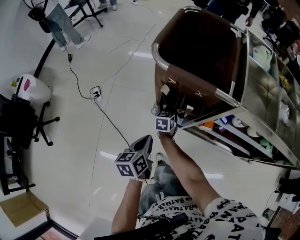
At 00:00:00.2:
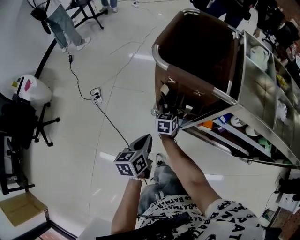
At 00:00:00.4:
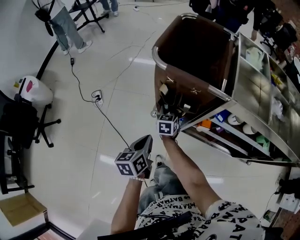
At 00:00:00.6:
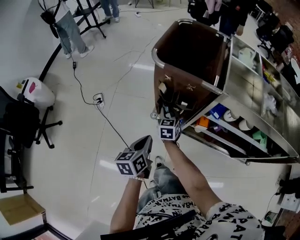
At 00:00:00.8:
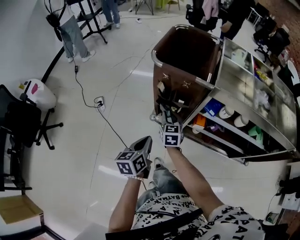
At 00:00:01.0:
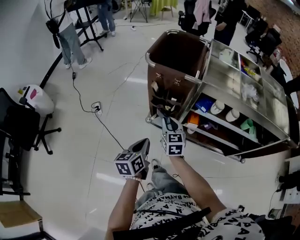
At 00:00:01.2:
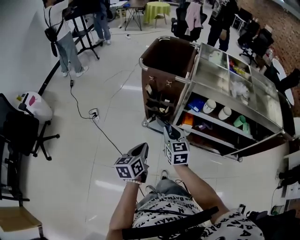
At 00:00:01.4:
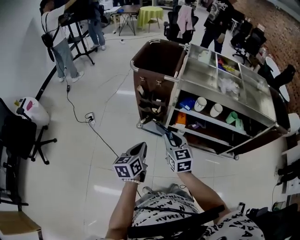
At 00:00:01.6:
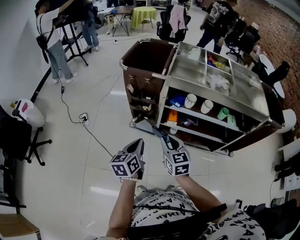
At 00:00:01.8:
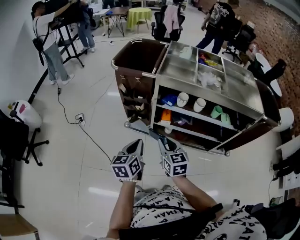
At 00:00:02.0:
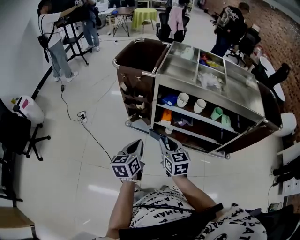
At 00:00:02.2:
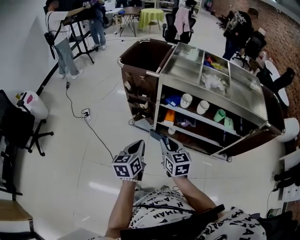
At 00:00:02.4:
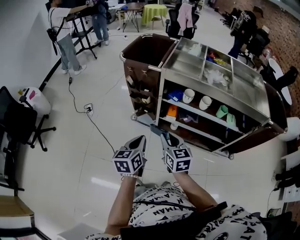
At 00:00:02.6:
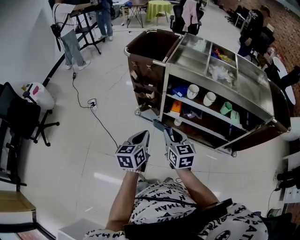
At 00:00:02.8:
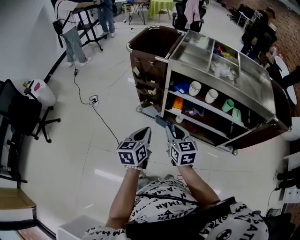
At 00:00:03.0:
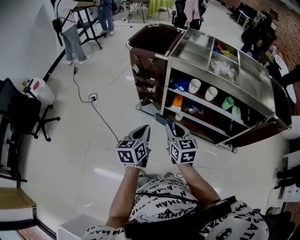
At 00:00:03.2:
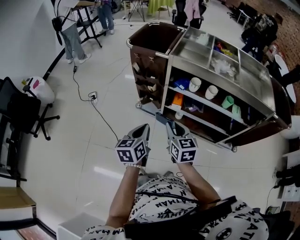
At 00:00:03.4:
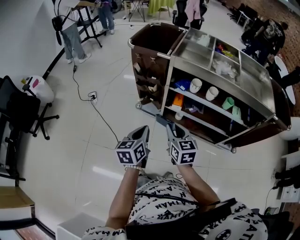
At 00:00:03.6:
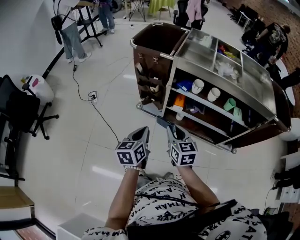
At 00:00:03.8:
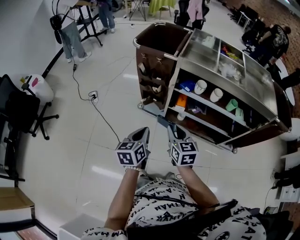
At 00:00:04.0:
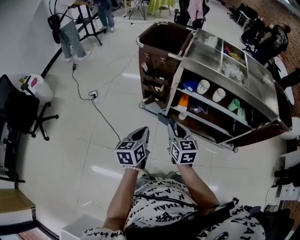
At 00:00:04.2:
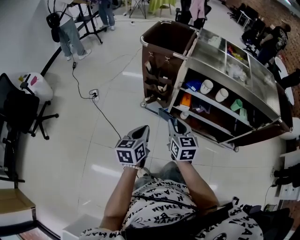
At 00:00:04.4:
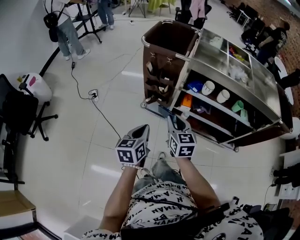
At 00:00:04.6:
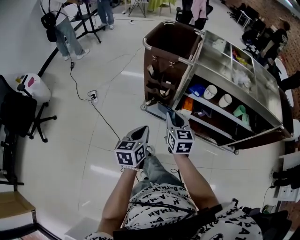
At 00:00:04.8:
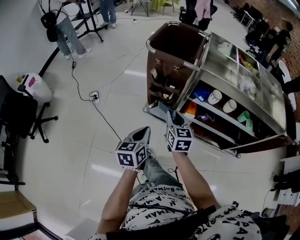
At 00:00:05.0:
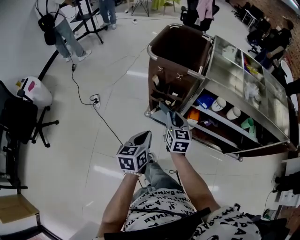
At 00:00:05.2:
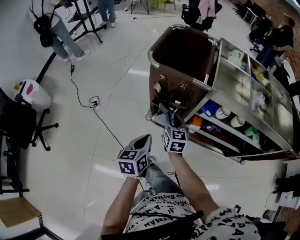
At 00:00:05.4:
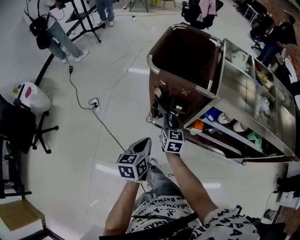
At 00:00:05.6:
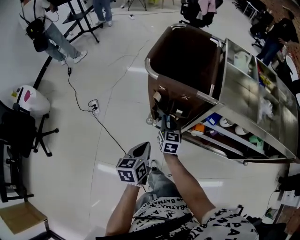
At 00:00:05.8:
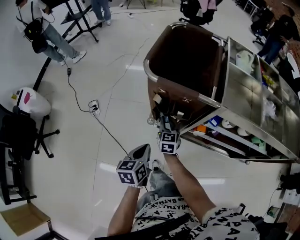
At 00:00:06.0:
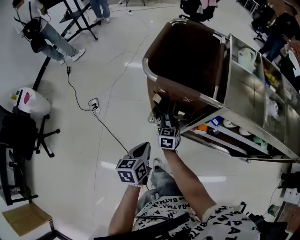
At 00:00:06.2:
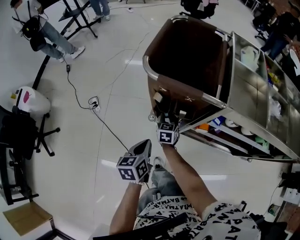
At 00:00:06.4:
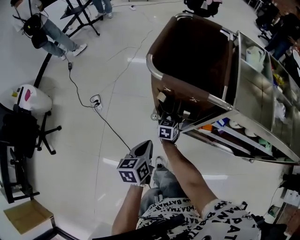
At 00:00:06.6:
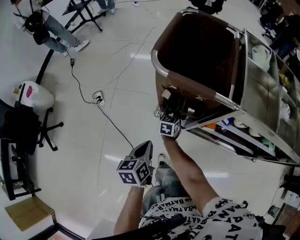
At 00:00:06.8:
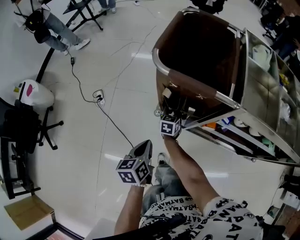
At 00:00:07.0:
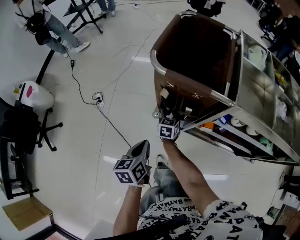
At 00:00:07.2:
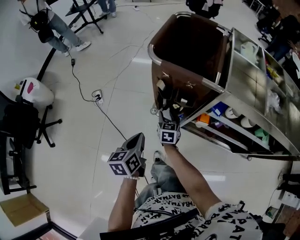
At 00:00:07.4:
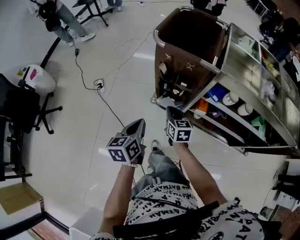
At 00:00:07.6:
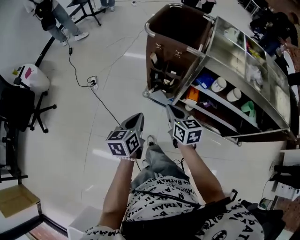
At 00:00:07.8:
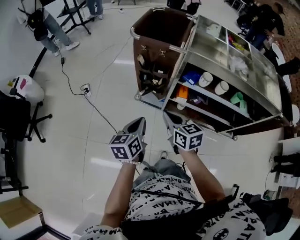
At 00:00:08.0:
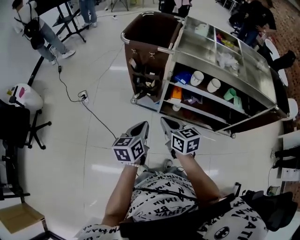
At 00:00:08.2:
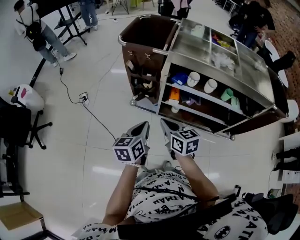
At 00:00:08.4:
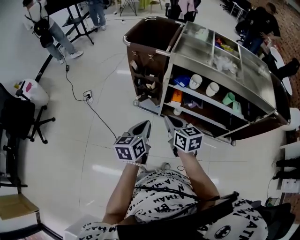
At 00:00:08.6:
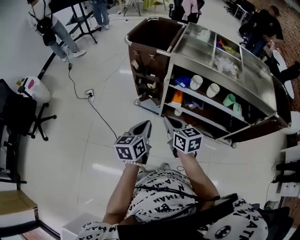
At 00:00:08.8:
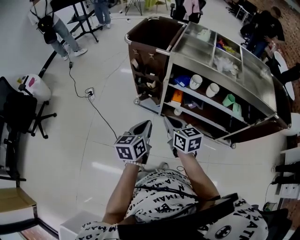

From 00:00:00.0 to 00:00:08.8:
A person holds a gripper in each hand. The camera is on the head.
From 00:00:00.0 to 00:00:01.4: The left gripper is displaced backward, upward and to the right by about 20 cm. Meanwhile the right gripper travels backward, upward and to the right by some 40 cm, and changes its angle by approximately 30 degrees.
From 00:00:01.4 to 00:00:03.0: Both grippers travel together to the right and backward, about 10 cm.
From 00:00:03.0 to 00:00:04.4: The left gripper travels to the left by some 10 cm, while the right gripper travels to the left and forward by about 10 cm.
From 00:00:04.4 to 00:00:05.8: The right gripper moves forward and downward, approximately 30 cm, while the left gripper is displaced forward by some 20 cm.
From 00:00:05.8 to 00:00:07.4: The left gripper travels backward by some 5 cm; the right gripper heads backward, covering some 10 cm, and opens, then closes again.
From 00:00:07.4 to 00:00:08.8: The right gripper travels backward, upward and to the right by some 30 cm, while the left gripper moves to the right and backward, roughly 25 cm.

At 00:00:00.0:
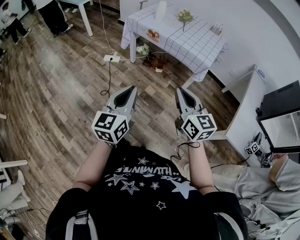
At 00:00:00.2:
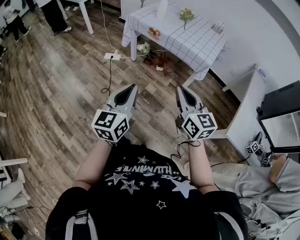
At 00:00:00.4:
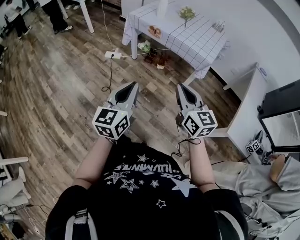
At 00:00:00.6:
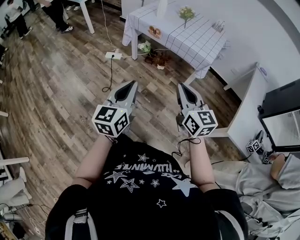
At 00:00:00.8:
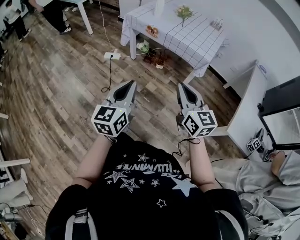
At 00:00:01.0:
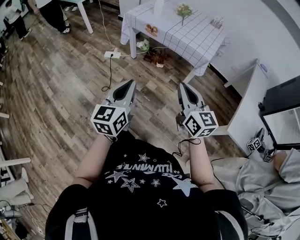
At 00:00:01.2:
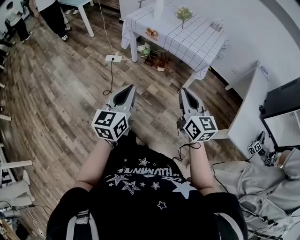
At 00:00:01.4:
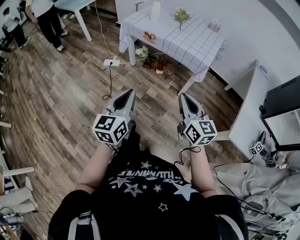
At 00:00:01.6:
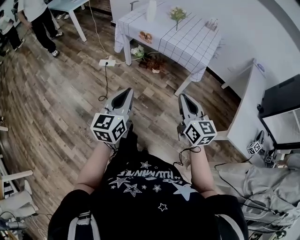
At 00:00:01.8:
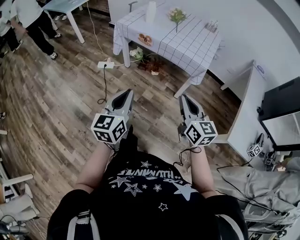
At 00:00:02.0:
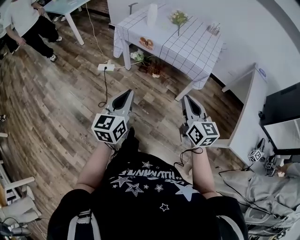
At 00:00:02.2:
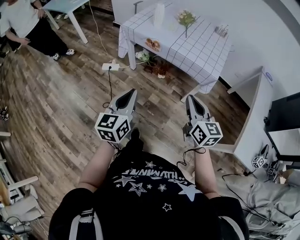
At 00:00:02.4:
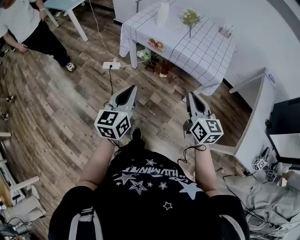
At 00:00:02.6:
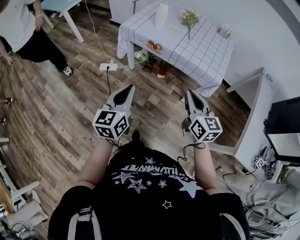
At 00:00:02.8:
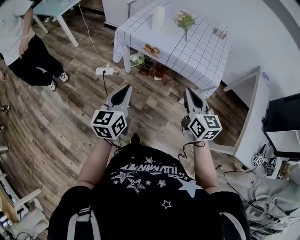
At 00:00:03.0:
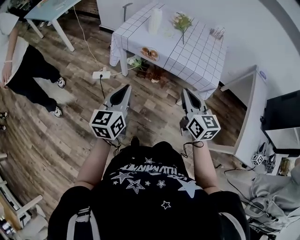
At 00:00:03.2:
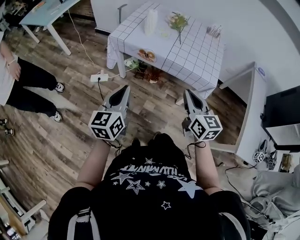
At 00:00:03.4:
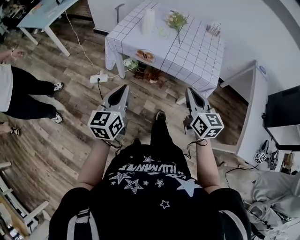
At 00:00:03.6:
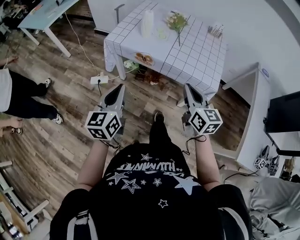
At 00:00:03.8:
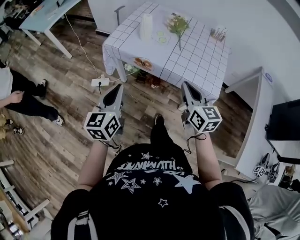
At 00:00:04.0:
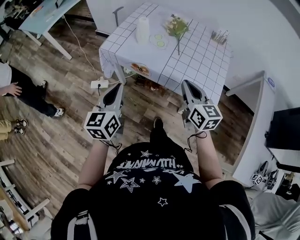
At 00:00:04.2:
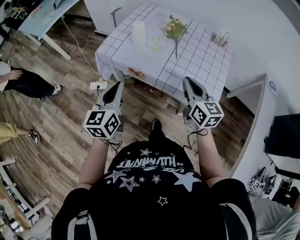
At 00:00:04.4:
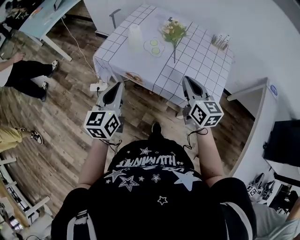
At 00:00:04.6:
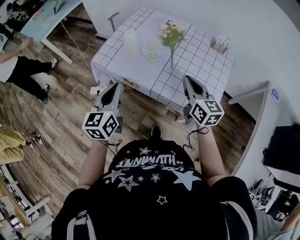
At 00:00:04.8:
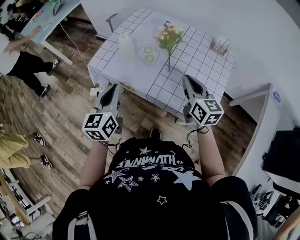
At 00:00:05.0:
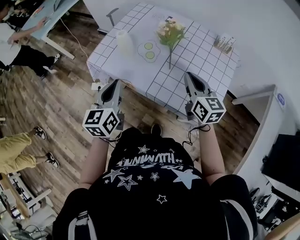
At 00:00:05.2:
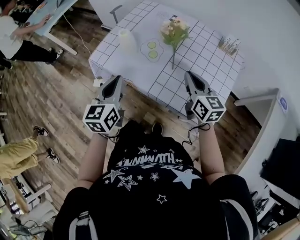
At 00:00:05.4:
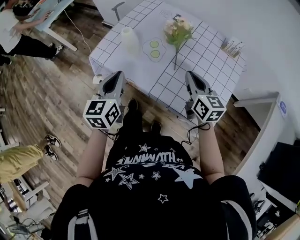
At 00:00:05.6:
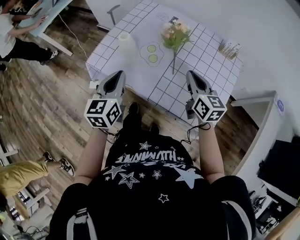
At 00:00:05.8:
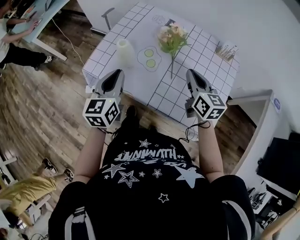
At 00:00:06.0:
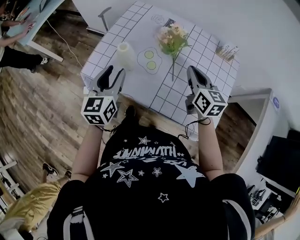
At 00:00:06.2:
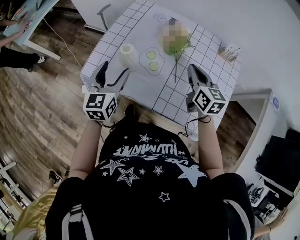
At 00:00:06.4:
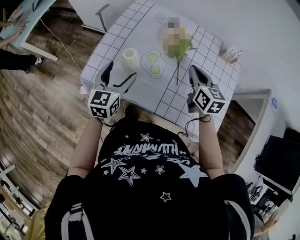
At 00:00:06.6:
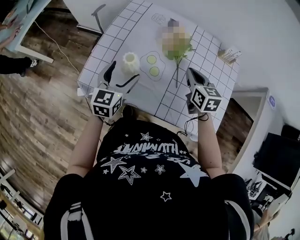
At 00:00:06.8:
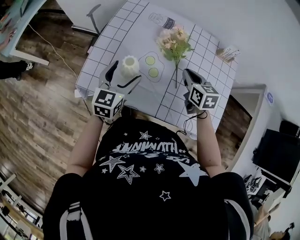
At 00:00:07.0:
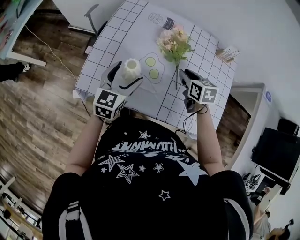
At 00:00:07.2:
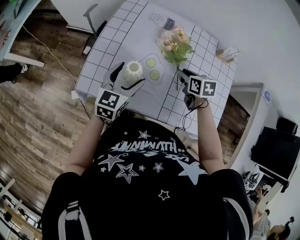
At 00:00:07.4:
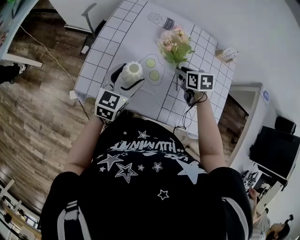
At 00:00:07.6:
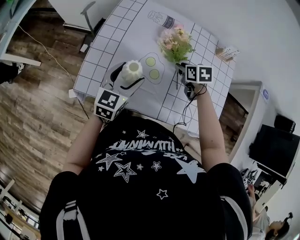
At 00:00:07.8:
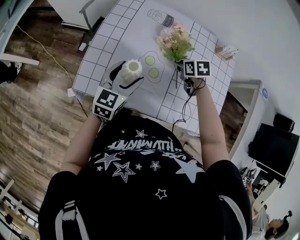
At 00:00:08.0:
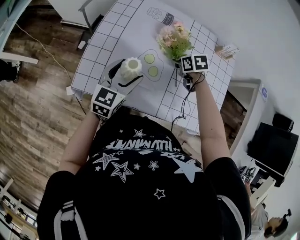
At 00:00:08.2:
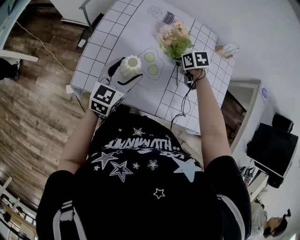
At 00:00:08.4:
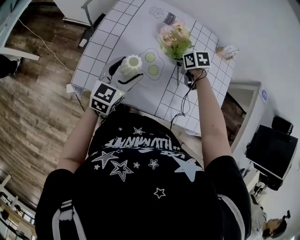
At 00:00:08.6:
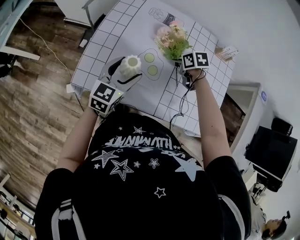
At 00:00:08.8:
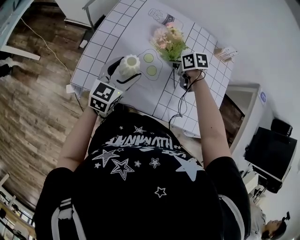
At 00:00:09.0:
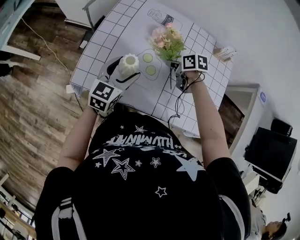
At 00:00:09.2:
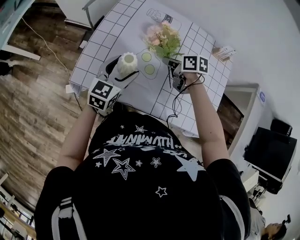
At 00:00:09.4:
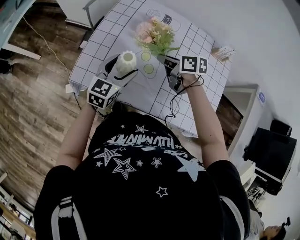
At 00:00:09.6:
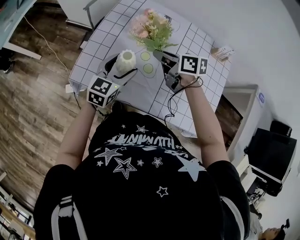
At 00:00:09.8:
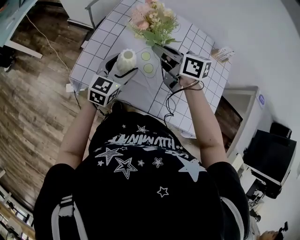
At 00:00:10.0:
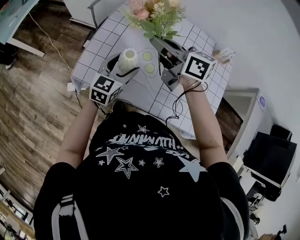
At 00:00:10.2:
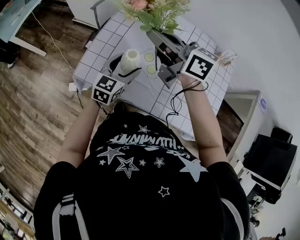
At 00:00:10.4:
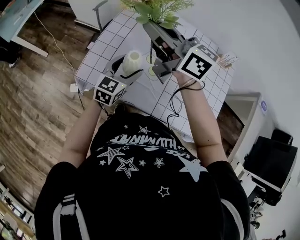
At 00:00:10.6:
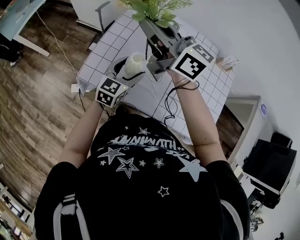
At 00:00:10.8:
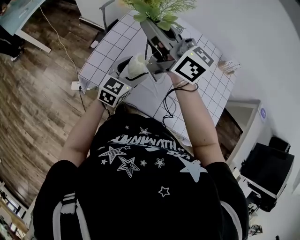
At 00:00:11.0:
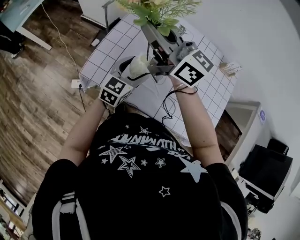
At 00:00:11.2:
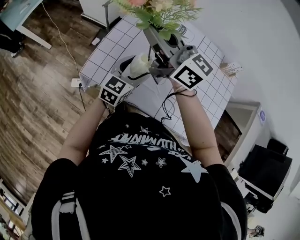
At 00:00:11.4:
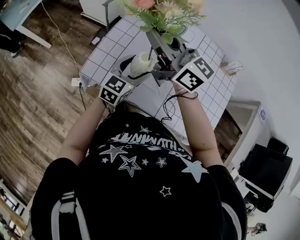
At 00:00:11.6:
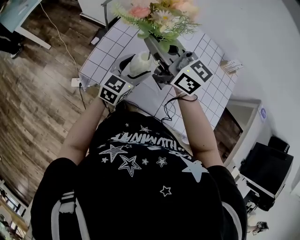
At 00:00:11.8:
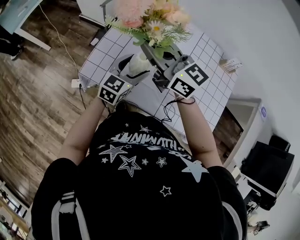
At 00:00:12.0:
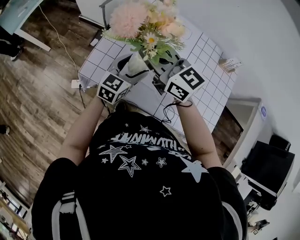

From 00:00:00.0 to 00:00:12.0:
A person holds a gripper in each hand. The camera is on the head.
From 00:00:00.0 to 00:00:01.6: The left gripper heads forward, covering some 5 cm. The right gripper is displaced to the right by about 5 cm.
From 00:00:01.6 to 00:00:03.0: Both grippers move forward and to the left, approximately 25 cm.
From 00:00:03.0 to 00:00:04.4: The right gripper moves forward and to the right, roughly 30 cm. The left gripper travels forward by approximately 25 cm.
From 00:00:04.4 to 00:00:06.0: Both grippers travel together forward, about 20 cm. The left gripper opens up.
From 00:00:06.0 to 00:00:07.6: The left gripper heads forward and downward, covering approximately 10 cm, changes its angle by some 30 degrees, and opens. Meanwhile the right gripper goes roughly 20 cm downward and forward, angles its fingers downward, by approximately 40 degrees, and opens.
From 00:00:07.6 to 00:00:09.0: The right gripper swivels about 20 degrees.
From 00:00:09.0 to 00:00:10.4: The right gripper travels upward and to the left by some 35 cm, and points its fingers about 60 degrees further upward.
From 00:00:10.4 to 00:00:12.0: The right gripper goes about 5 cm downward.

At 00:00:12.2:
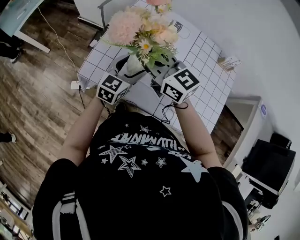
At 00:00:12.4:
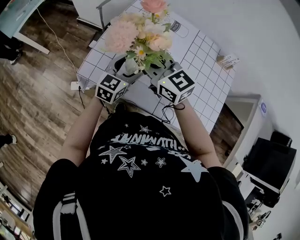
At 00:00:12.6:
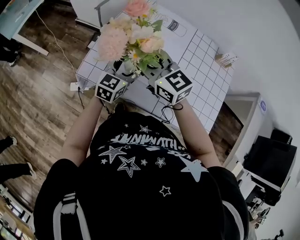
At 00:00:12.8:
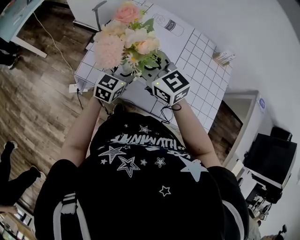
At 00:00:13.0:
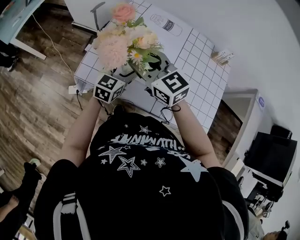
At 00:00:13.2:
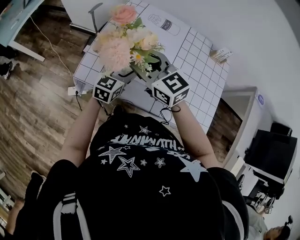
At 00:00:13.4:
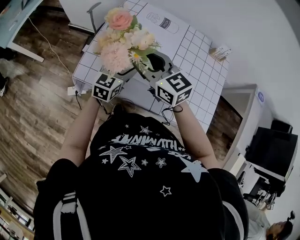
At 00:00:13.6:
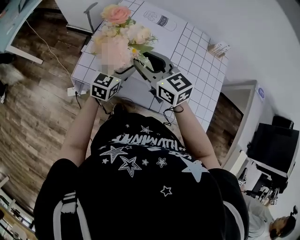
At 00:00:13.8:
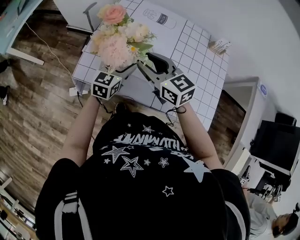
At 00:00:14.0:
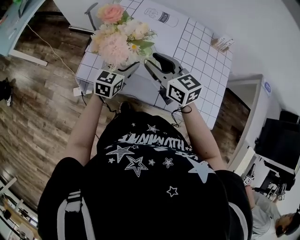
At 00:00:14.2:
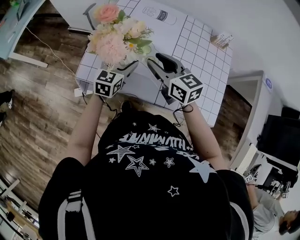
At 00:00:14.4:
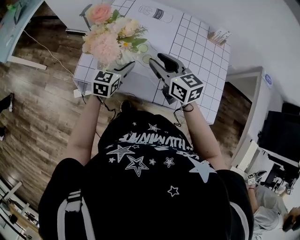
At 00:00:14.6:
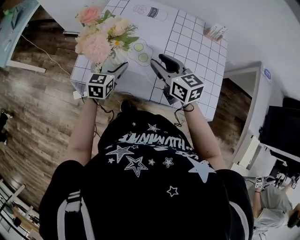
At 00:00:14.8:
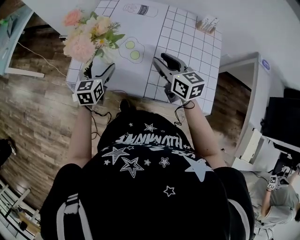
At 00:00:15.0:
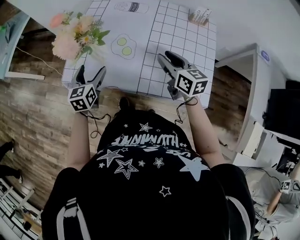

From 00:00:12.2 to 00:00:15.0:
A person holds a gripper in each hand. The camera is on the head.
From 00:00:12.2 to 00:00:13.6: The right gripper ends up some 5 cm from where it was, and opens its fingers.
From 00:00:13.6 to 00:00:15.0: The right gripper shifts roughly 20 cm to the right, and changes its angle by about 30 degrees. The left gripper shifts some 10 cm backward and to the left.
